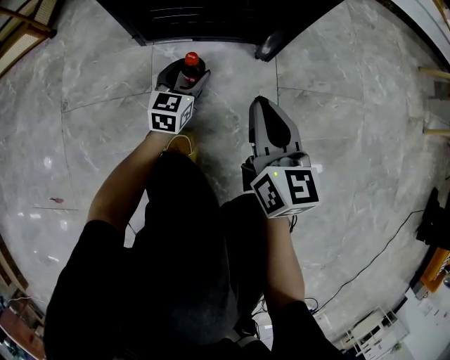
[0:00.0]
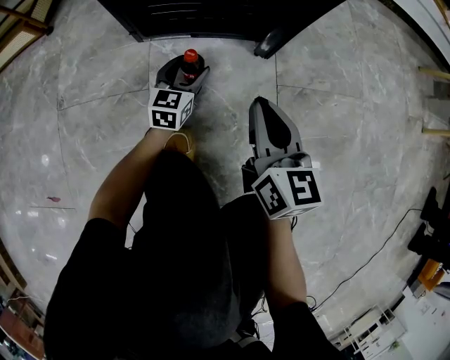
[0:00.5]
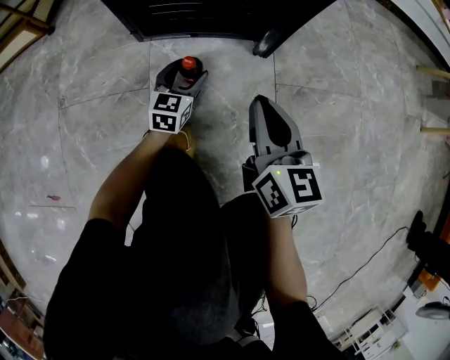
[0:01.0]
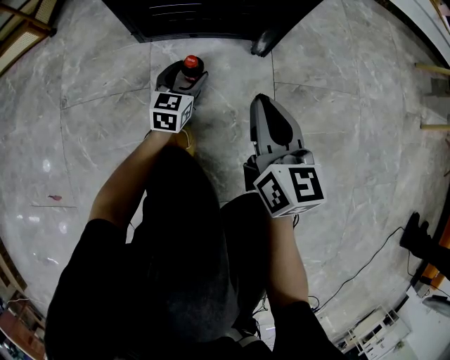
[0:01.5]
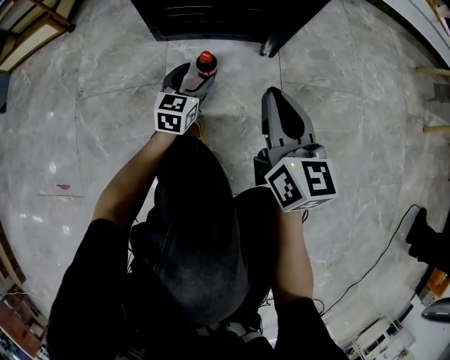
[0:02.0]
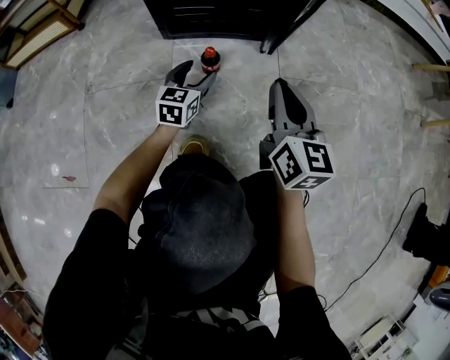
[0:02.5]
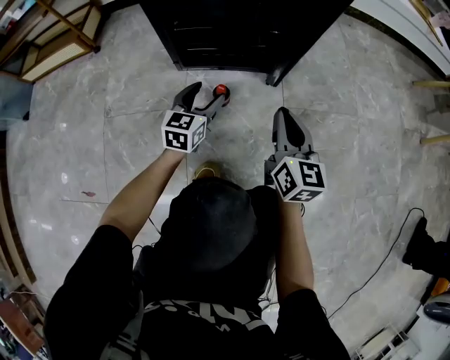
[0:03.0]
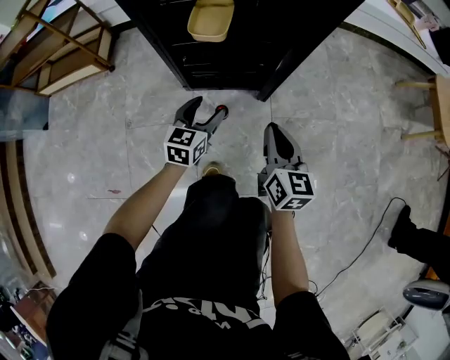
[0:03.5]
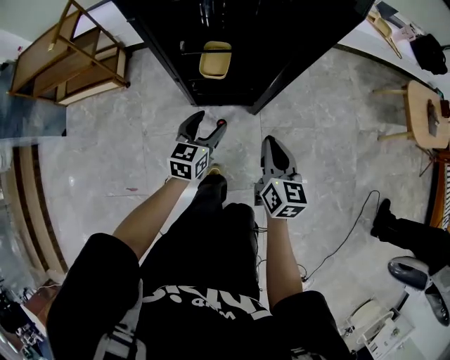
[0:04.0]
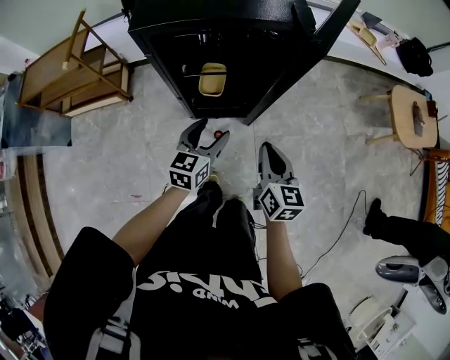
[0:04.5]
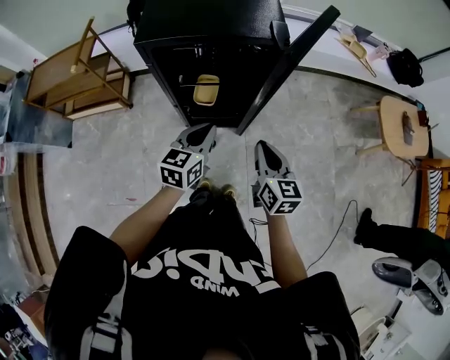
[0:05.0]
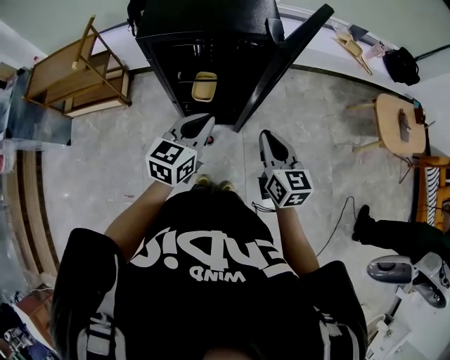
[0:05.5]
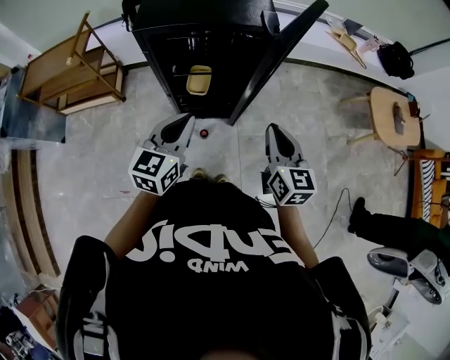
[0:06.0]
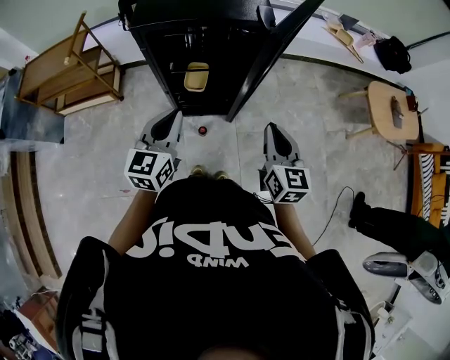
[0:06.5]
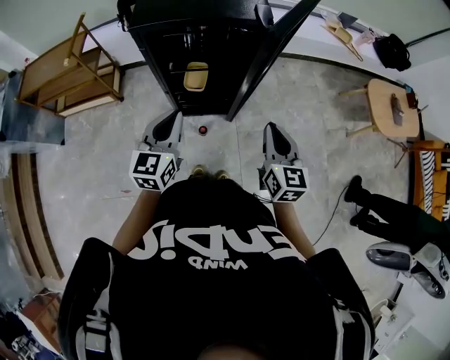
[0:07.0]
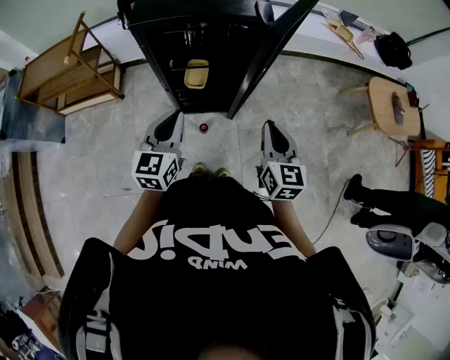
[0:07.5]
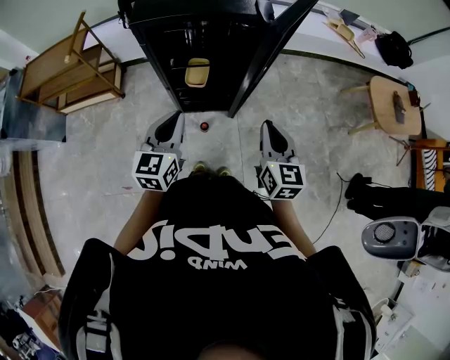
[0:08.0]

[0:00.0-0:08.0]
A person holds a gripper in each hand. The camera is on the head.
0:00.0 to 0:02.0: The left gripper heads backward, covering roughly 5 cm, while the right gripper is displaced upward by about 5 cm.
0:02.0 to 0:04.0: Both grippers travel together upward, roughly 50 cm.
0:04.0 to 0:06.0: The grippers both shift upward by approximately 25 cm. The left gripper closes up.
0:06.0 to 0:08.0: The grippers stay close to where they were, moving slightly.

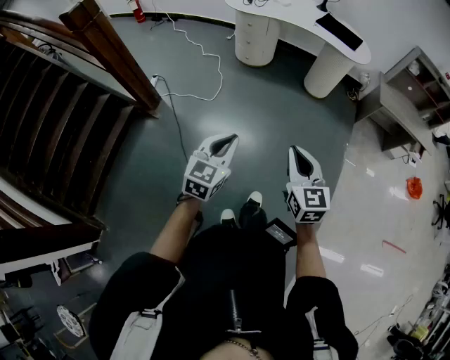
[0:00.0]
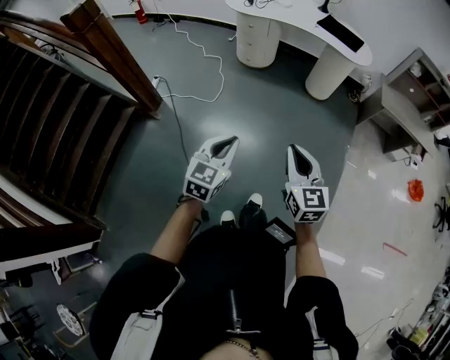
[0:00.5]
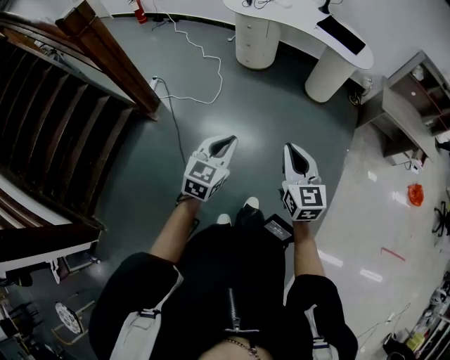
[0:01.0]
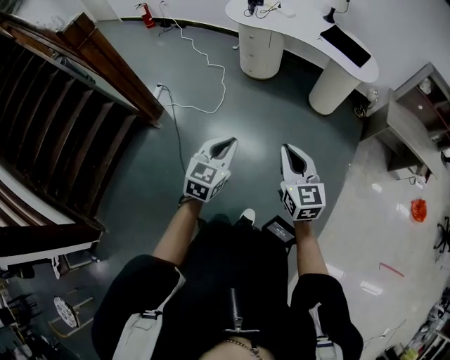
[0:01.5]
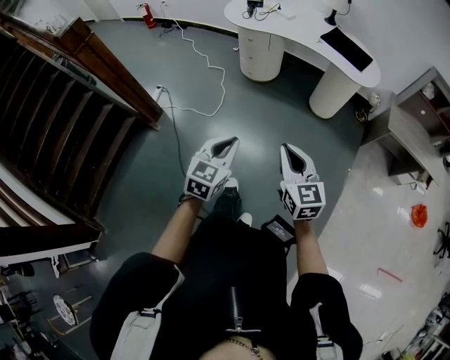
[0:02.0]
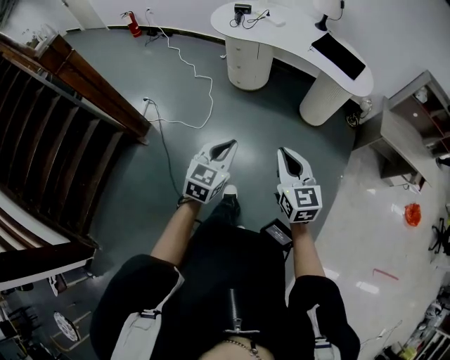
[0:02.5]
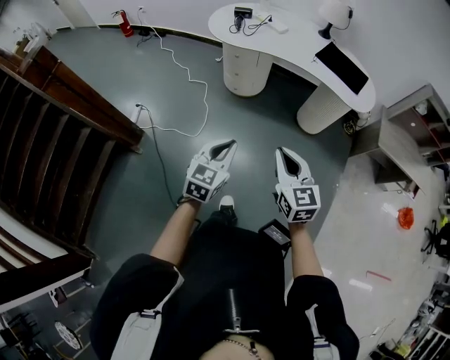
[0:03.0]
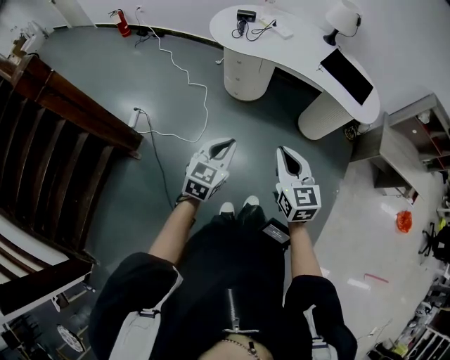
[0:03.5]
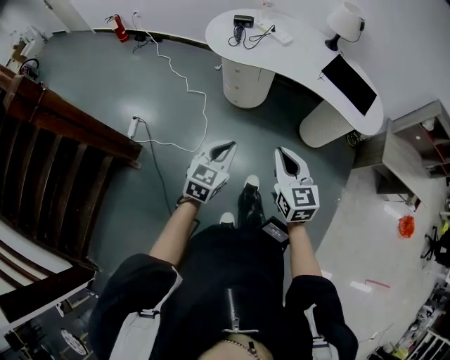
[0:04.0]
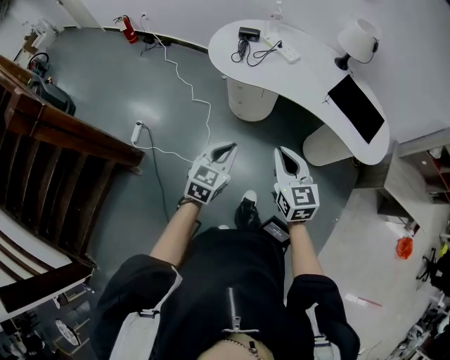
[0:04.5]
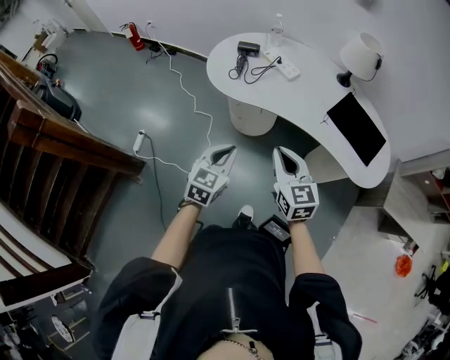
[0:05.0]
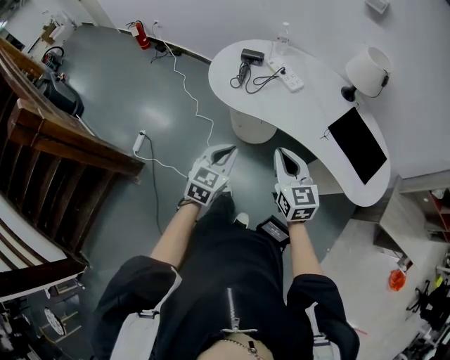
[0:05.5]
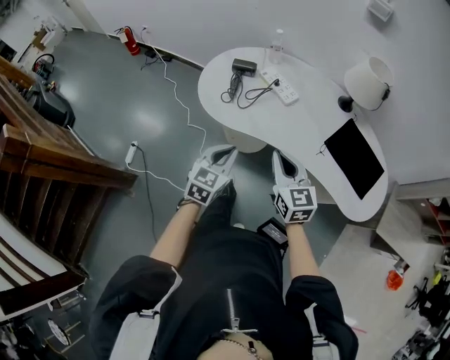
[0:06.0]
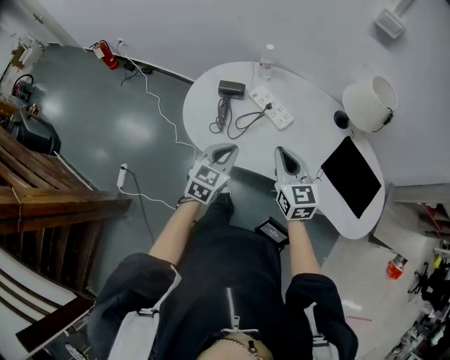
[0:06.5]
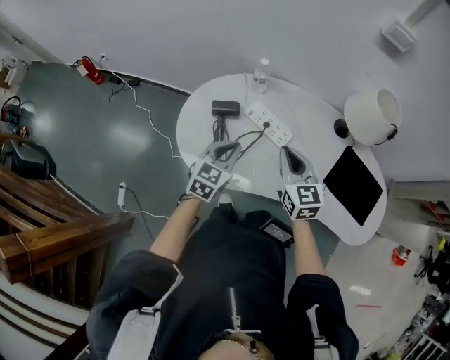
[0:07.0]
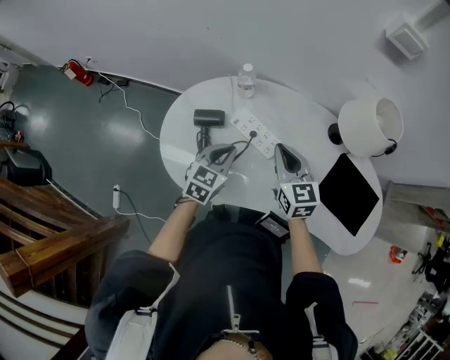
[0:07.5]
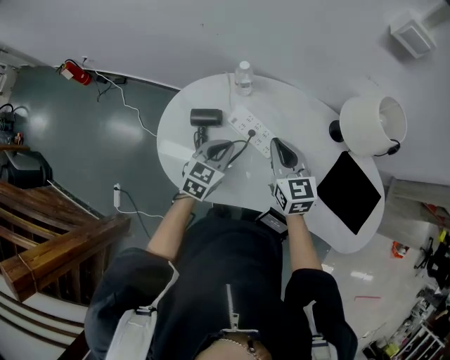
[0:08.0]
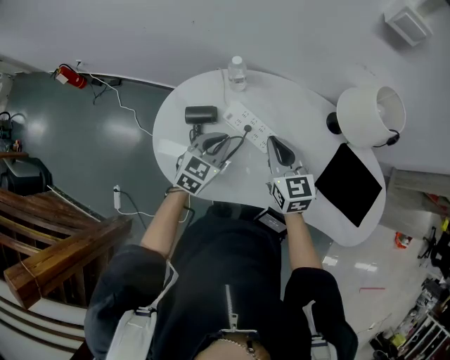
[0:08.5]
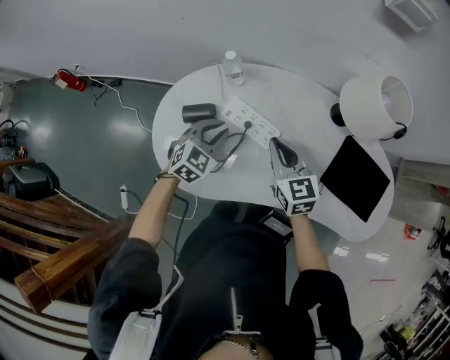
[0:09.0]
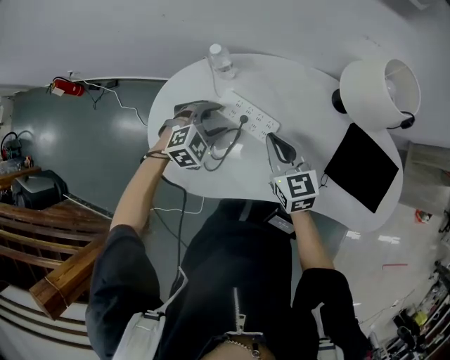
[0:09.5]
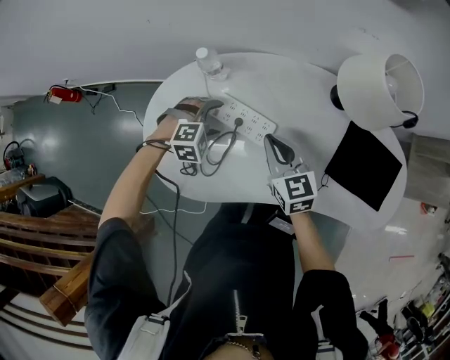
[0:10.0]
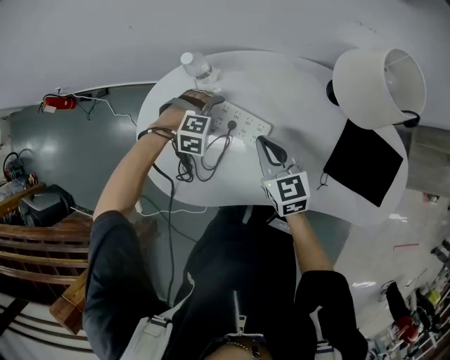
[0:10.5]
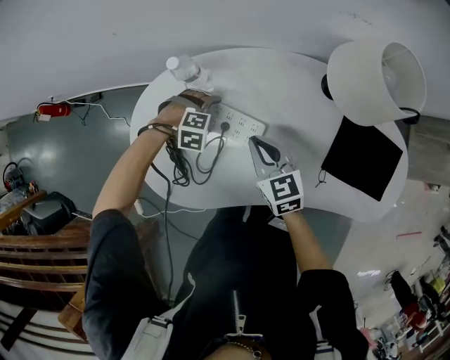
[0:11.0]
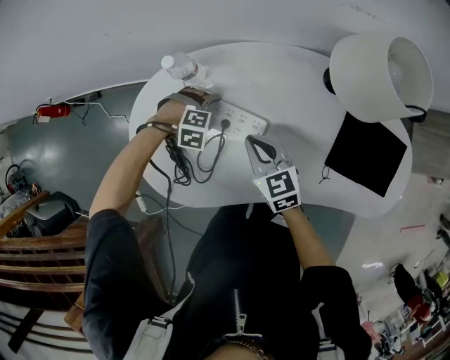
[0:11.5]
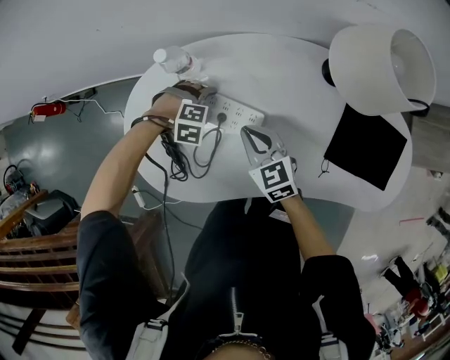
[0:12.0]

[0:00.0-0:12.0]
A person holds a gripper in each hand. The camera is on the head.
0:00.0 to 0:02.0: The right gripper shifts some 15 cm forward, while the left gripper travels forward and to the right by roughly 20 cm.
0:02.0 to 0:04.0: Both grippers travel together forward, roughly 35 cm.
0:04.0 to 0:06.0: Both grippers travel together forward, approximately 35 cm.
0:06.0 to 0:08.0: Both grippers travel together forward, some 35 cm.
0:08.0 to 0:10.0: The left gripper is displaced downward and forward by approximately 10 cm, twists roughly 60 degrees clockwise, seen from behind, and opens; the right gripper heads downward, covering some 5 cm.
0:10.0 to 0:12.0: The grippers both shift downward by about 10 cm. The left gripper rotates approximately 30 degrees.

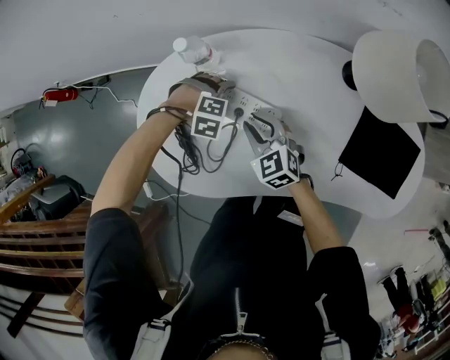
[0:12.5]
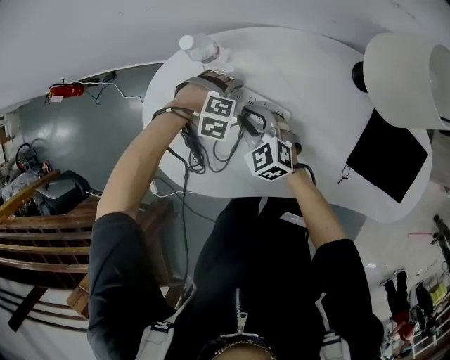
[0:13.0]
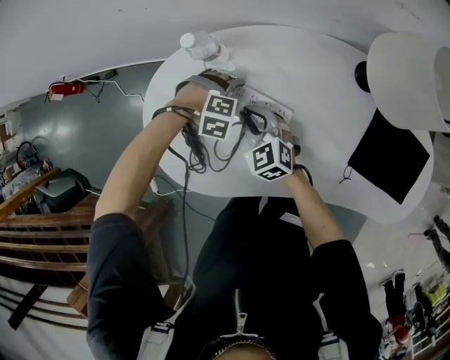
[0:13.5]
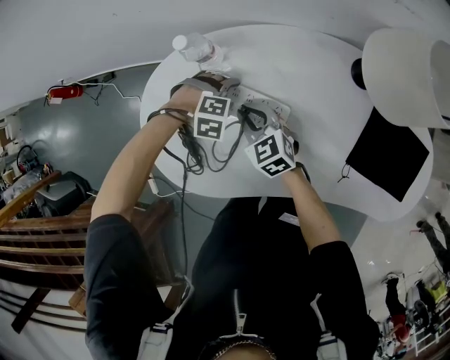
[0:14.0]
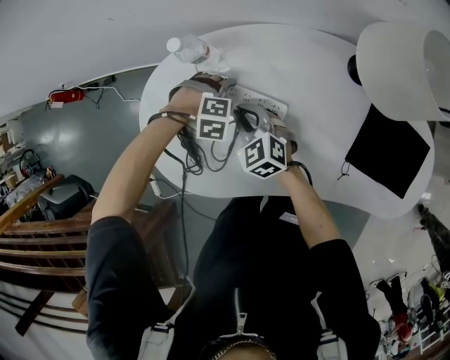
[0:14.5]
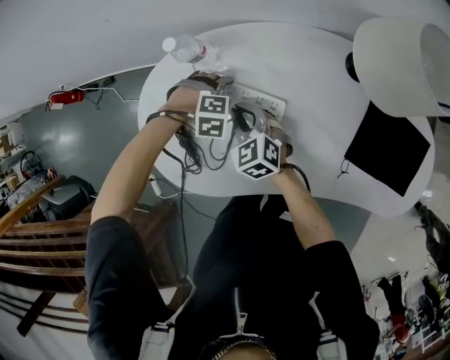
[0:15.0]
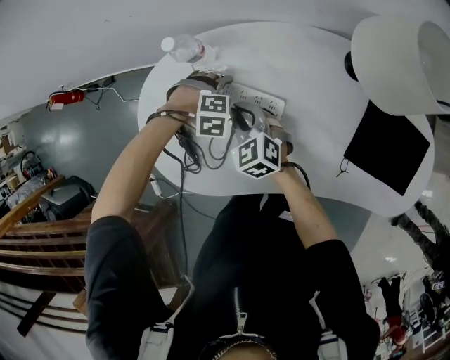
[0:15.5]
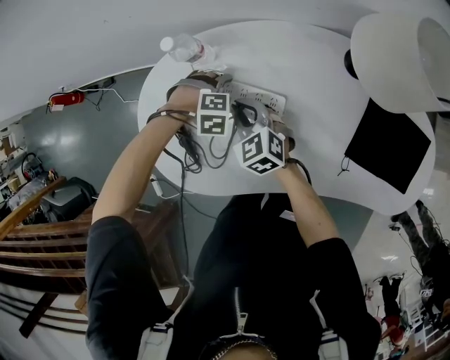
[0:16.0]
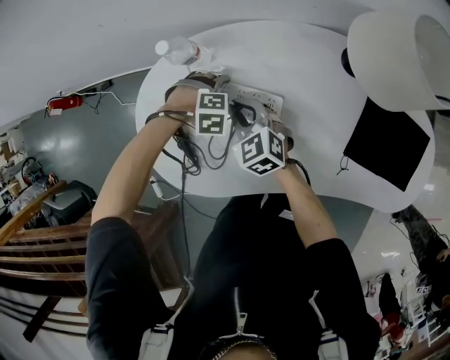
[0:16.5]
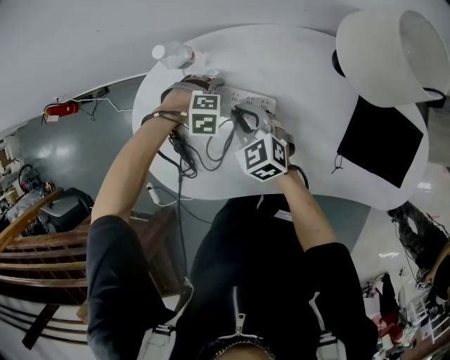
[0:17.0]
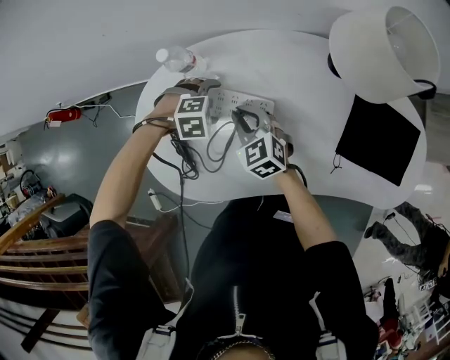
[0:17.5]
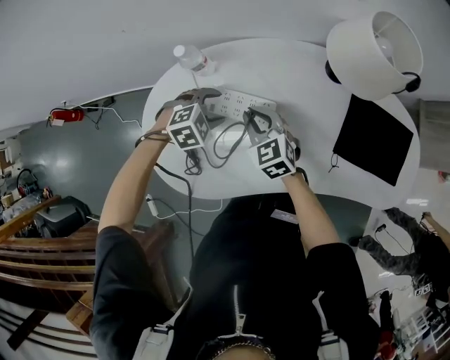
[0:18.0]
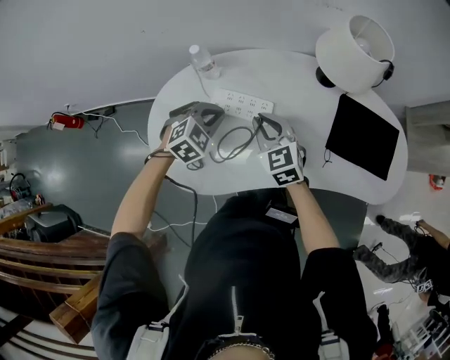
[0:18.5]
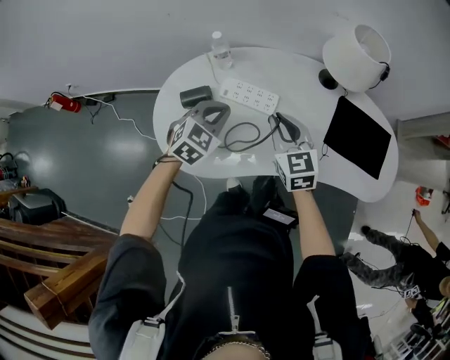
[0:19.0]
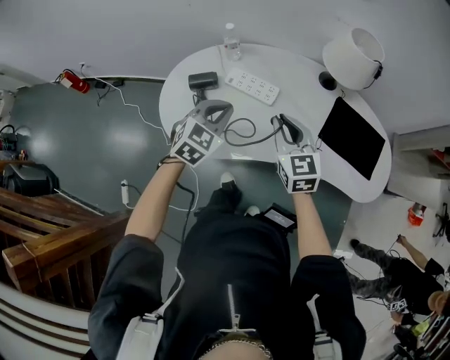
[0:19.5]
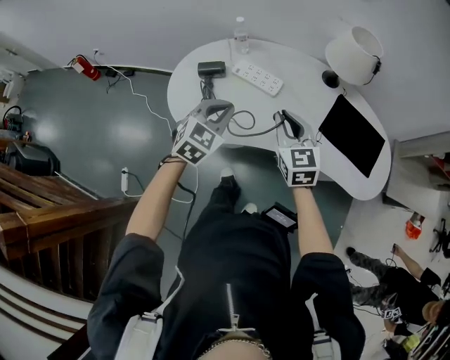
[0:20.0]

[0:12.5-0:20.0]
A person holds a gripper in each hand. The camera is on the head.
0:12.5 to 0:16.5: The grippers stay close to where they were, moving slightly.
0:16.5 to 0:18.0: The right gripper moves some 5 cm. The left gripper travels upward by about 10 cm, and rotates some 30 degrees.
0:18.0 to 0:20.0: The left gripper heads backward and upward, covering roughly 30 cm, angles its fingers upward, by approximately 40 degrees, and closes. The right gripper travels backward, upward and to the right by roughly 30 cm.
